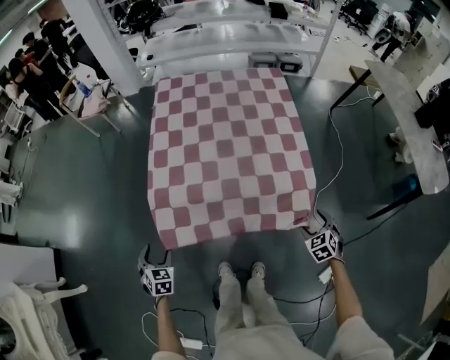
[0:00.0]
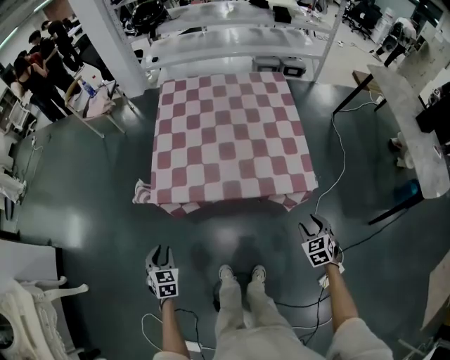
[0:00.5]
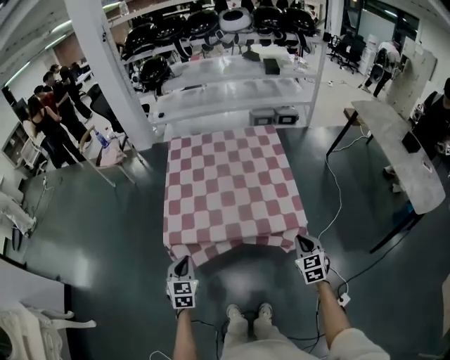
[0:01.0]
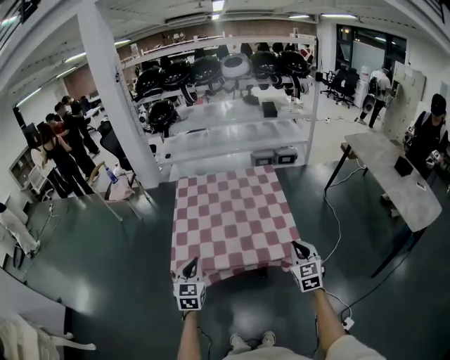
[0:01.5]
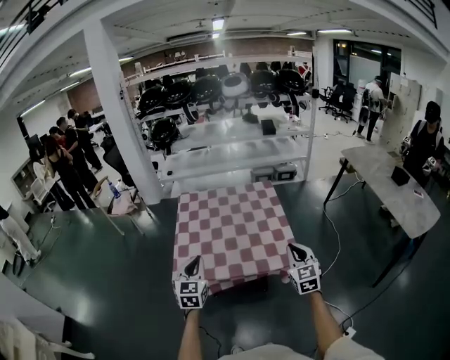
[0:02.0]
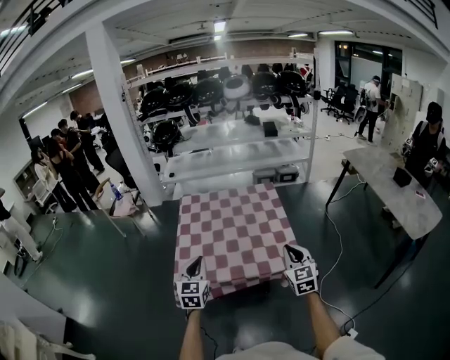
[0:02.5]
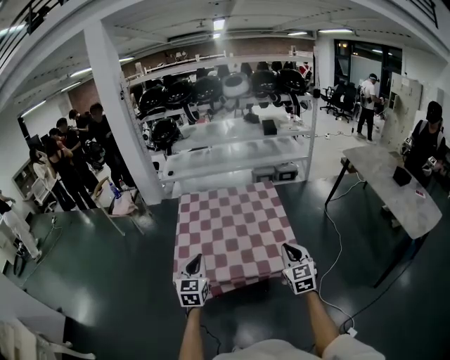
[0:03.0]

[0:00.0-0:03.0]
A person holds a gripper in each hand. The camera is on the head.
0:00.0 to 0:01.5: The right gripper travels upward by approximately 30 cm, angles its fingers upward, by some 40 degrees, and closes its fingers. Meanwhile the left gripper is displaced upward and to the right by some 35 cm, tips its fingers upward by some 30 degrees, and closes.
0:01.5 to 0:03.0: The two grippers go some 5 cm upward.

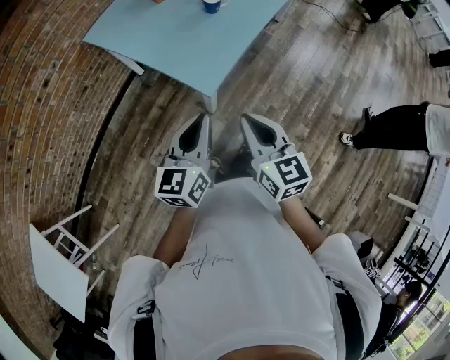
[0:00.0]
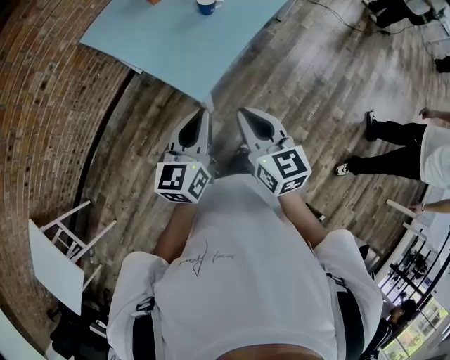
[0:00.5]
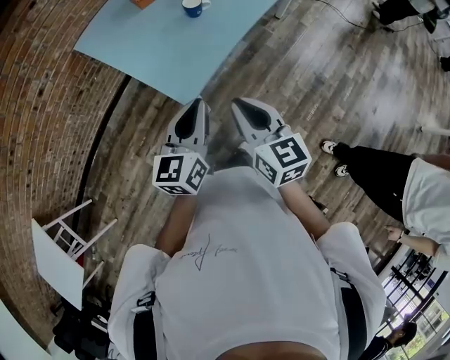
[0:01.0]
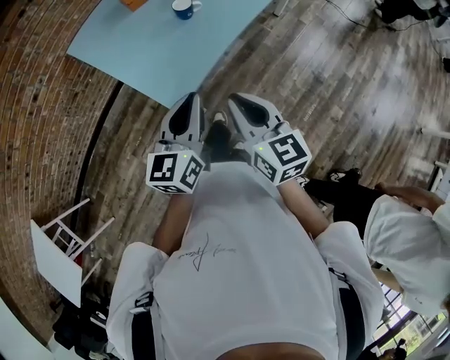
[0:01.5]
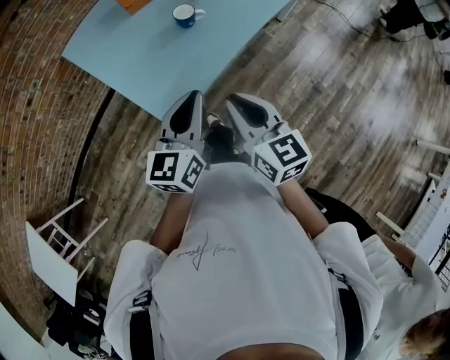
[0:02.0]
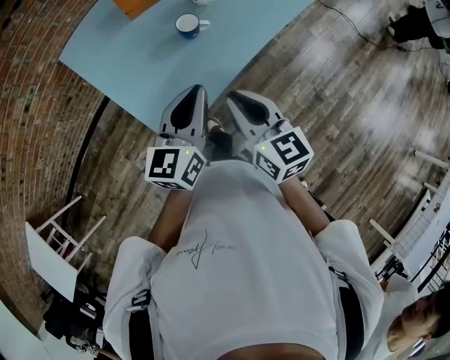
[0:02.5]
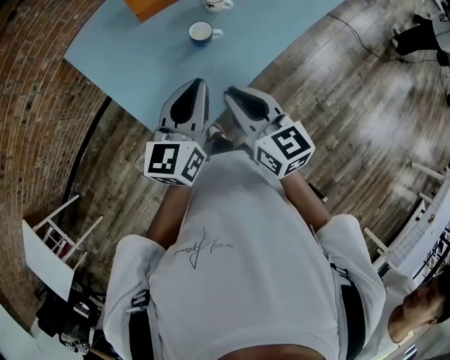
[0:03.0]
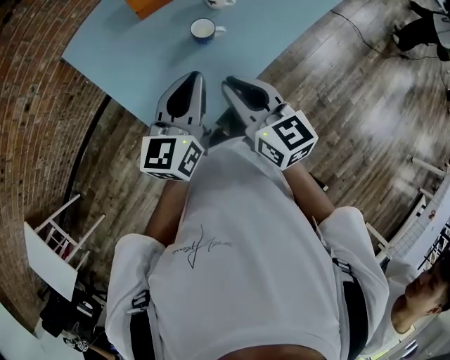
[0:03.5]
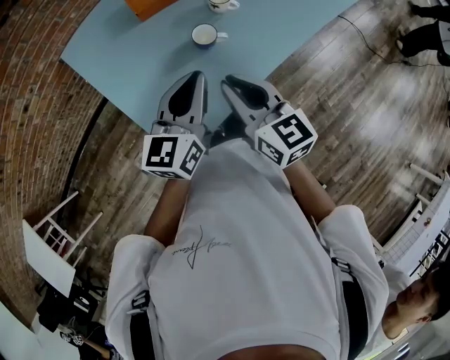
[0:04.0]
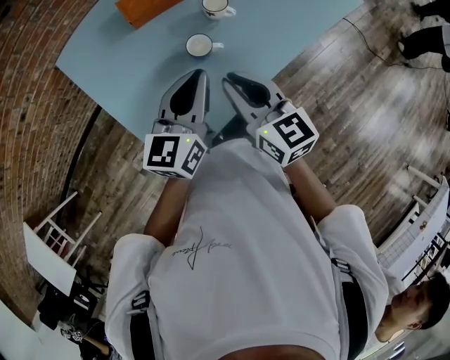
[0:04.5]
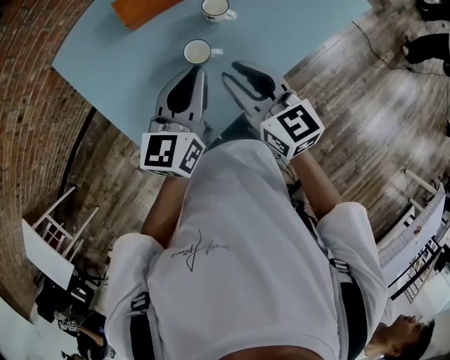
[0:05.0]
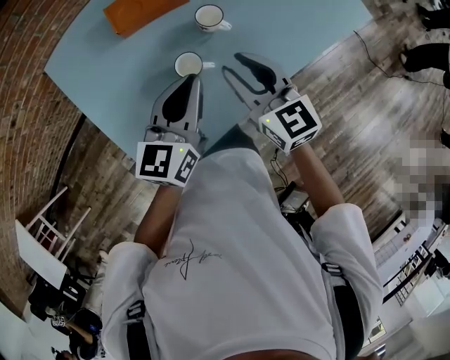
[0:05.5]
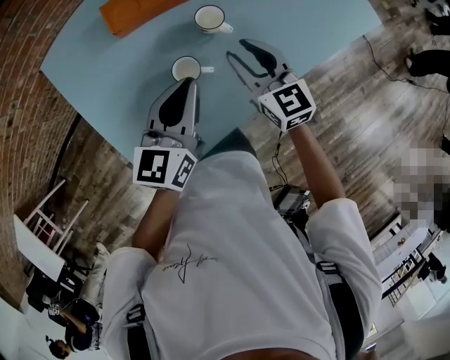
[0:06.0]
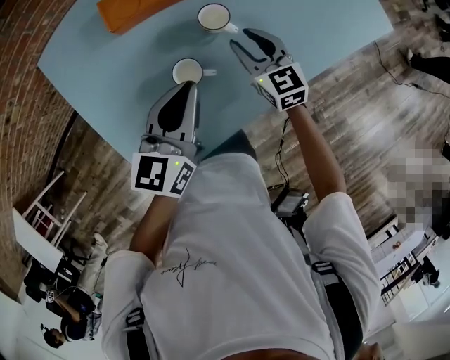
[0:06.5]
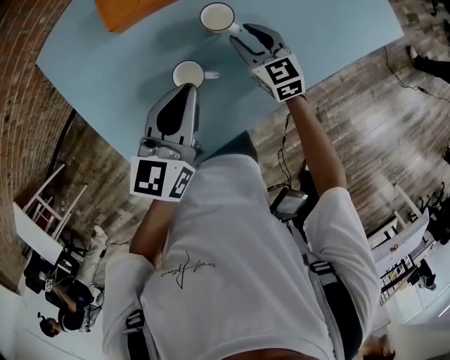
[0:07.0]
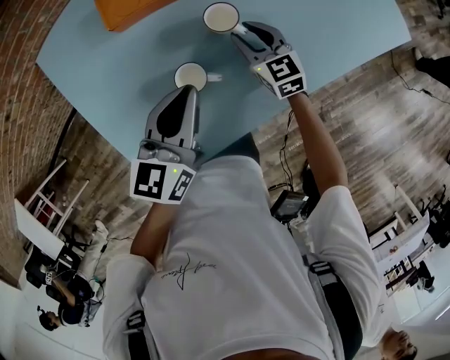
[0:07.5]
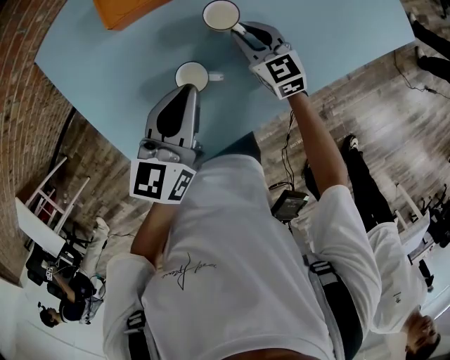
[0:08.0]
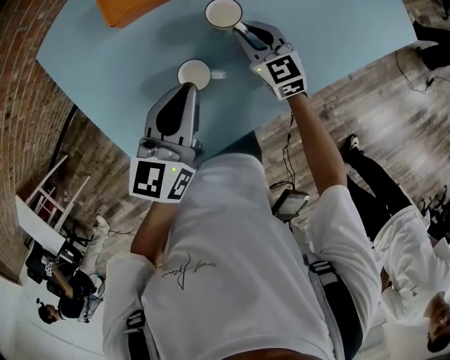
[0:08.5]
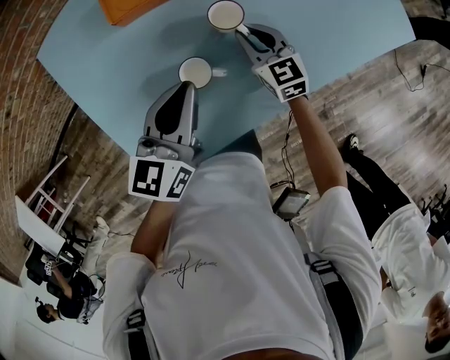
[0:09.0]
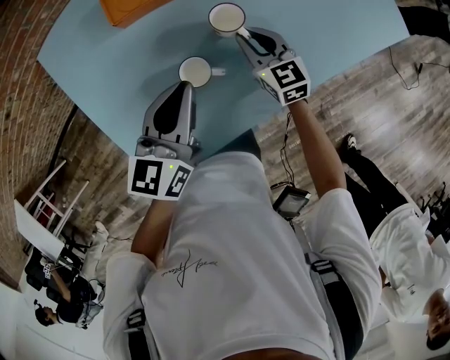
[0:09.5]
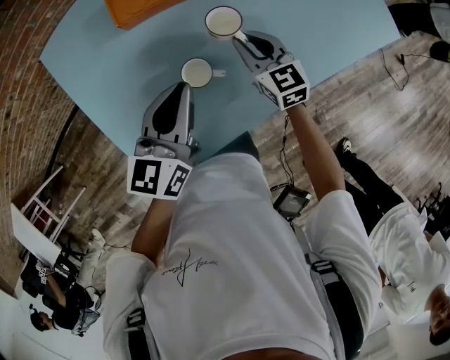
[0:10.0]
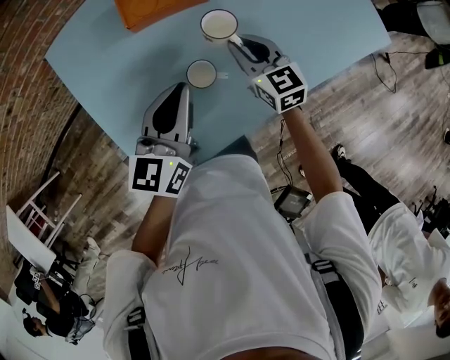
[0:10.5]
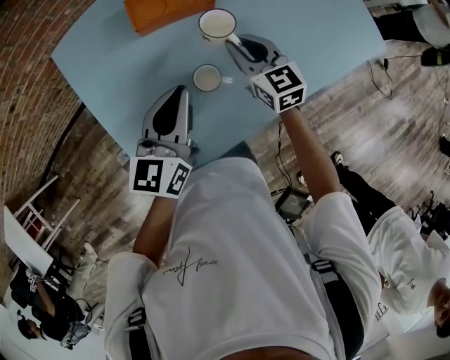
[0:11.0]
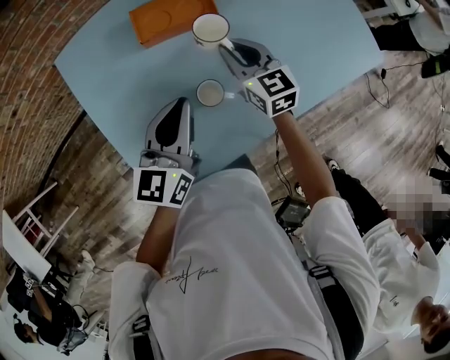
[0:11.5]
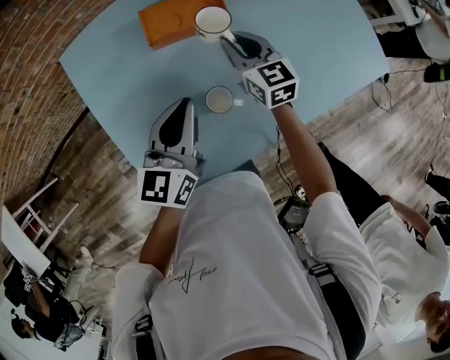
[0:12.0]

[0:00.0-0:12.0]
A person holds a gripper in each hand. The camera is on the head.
0:00.0 to 0:02.0: Both grippers travel together forward and to the right, roughly 20 cm.
0:02.0 to 0:04.0: Both grippers move forward, approximately 15 cm.
0:04.0 to 0:06.0: The left gripper travels forward and to the right by approximately 10 cm, while the right gripper moves forward and to the right, roughly 20 cm, and opens.
0:06.0 to 0:08.0: The right gripper is displaced downward and forward by about 15 cm.
0:08.0 to 0:10.0: There are only small adjustments of the grippers.
0:10.0 to 0:12.0: The right gripper heads upward, forward and to the left, covering some 10 cm.

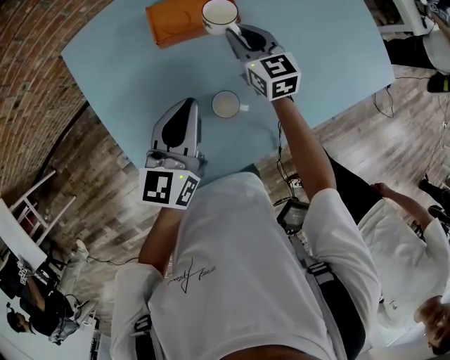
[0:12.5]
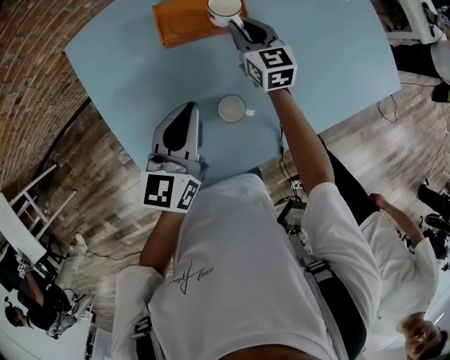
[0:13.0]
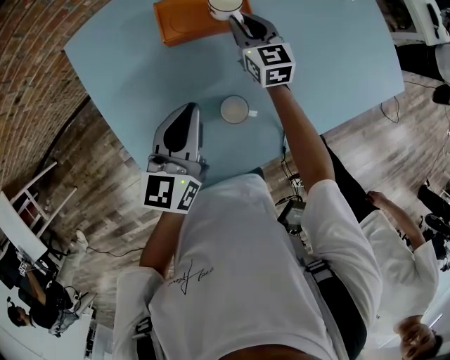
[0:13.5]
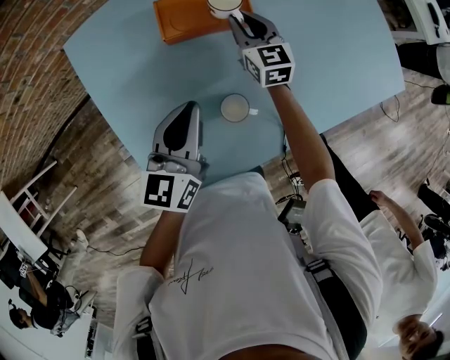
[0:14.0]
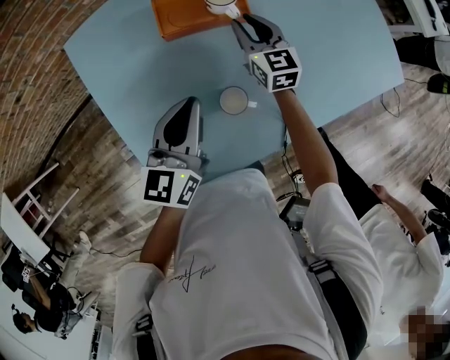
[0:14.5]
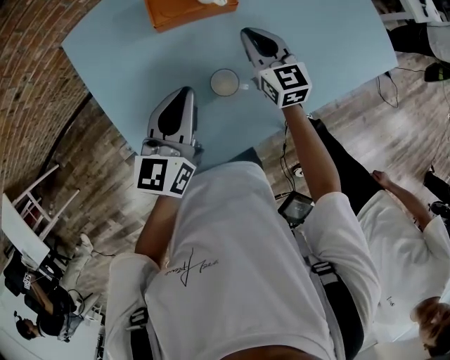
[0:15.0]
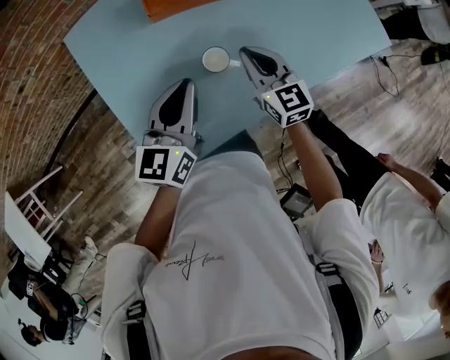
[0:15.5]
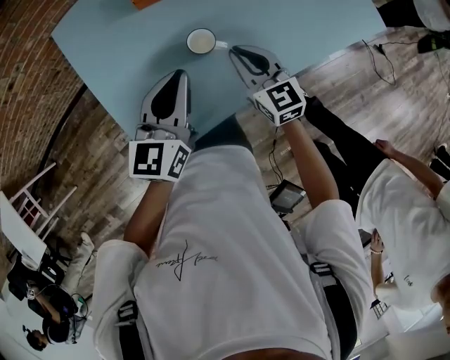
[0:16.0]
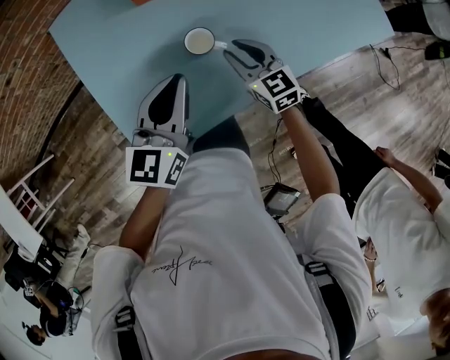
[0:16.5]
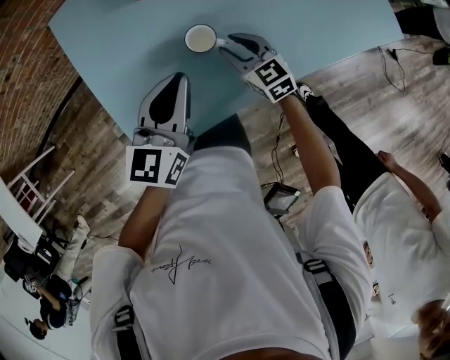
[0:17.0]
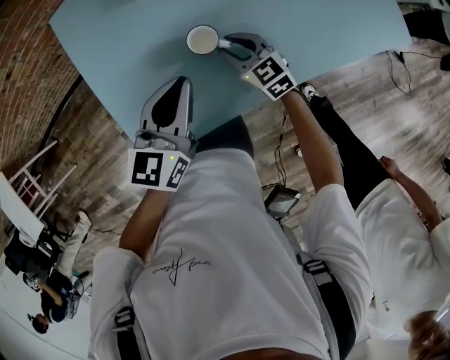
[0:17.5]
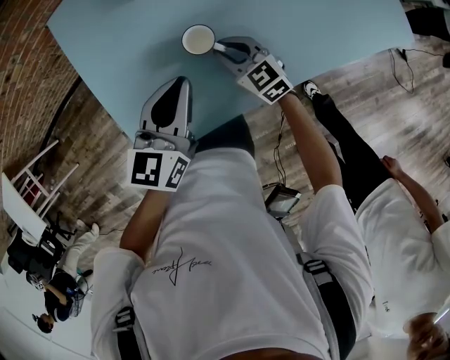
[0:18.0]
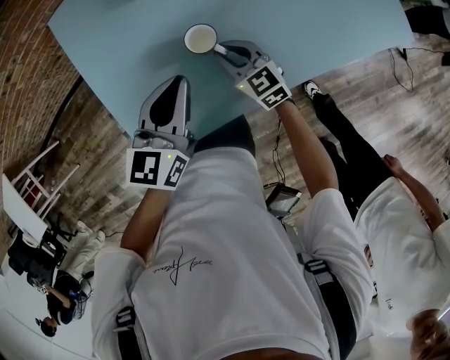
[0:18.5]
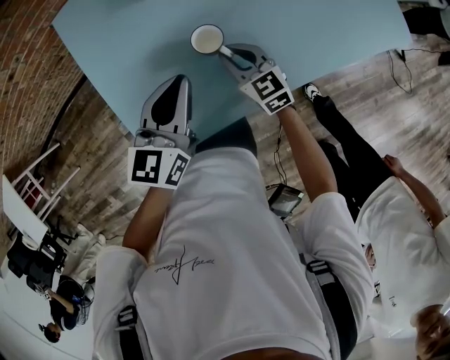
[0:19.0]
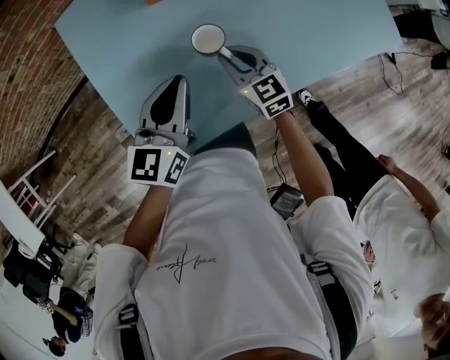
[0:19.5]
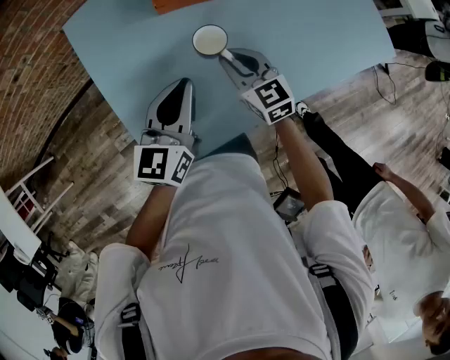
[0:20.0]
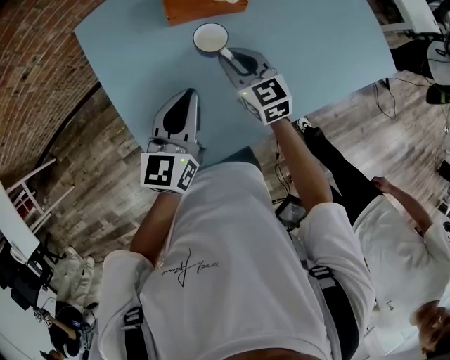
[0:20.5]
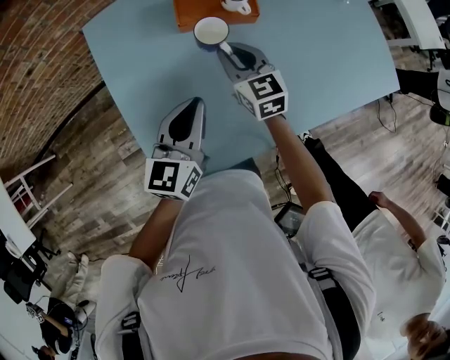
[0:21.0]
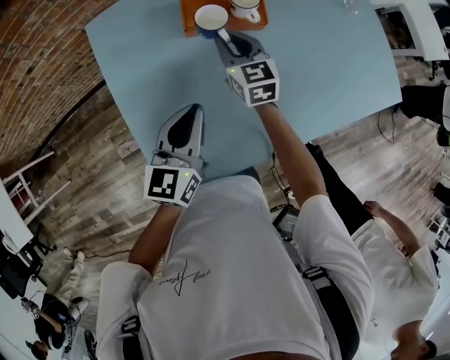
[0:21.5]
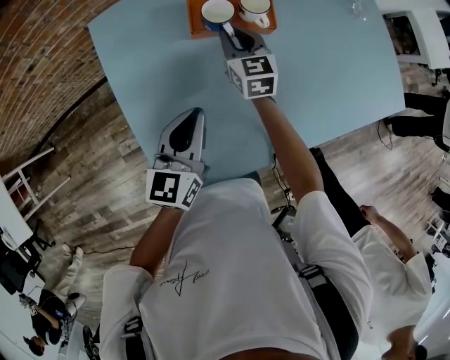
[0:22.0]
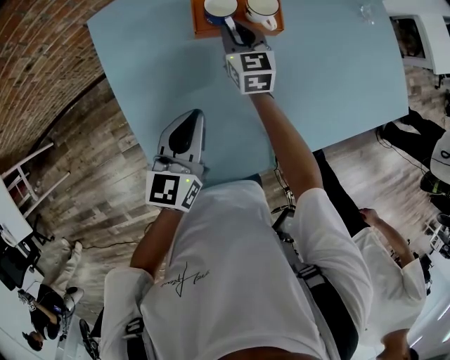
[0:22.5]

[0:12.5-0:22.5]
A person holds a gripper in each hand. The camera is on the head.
0:14.5 to 0:16.5: The right gripper travels backward by some 20 cm. Meanwhile the left gripper moves backward, roughly 10 cm.
0:16.5 to 0:18.5: The right gripper shifts by some 5 cm.
0:18.5 to 0:20.5: The right gripper heads upward and forward, covering some 10 cm. The left gripper ends up some 5 cm from where it was.
0:20.5 to 0:22.5: The right gripper is displaced forward by roughly 15 cm, while the left gripper shifts by approximately 5 cm.

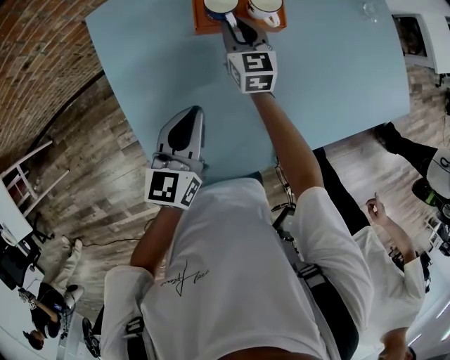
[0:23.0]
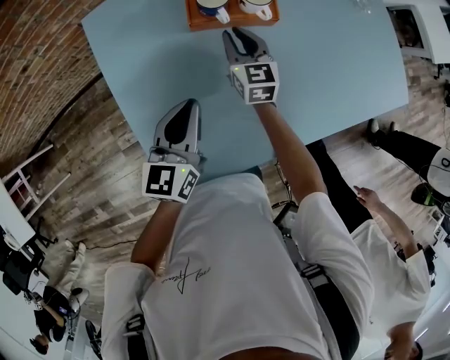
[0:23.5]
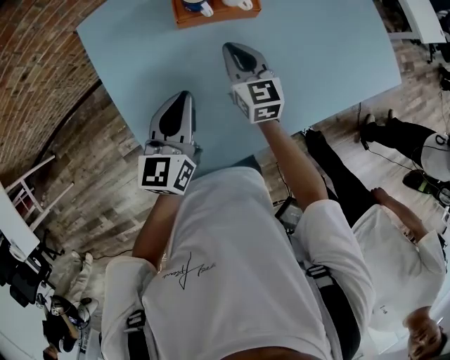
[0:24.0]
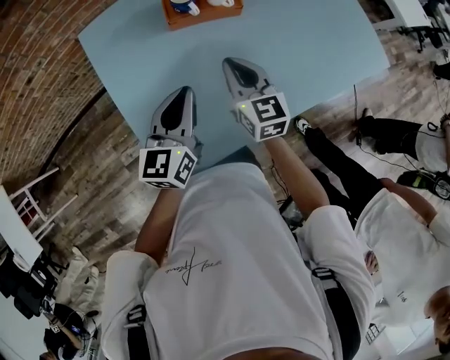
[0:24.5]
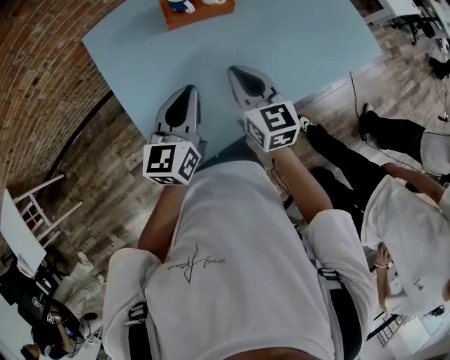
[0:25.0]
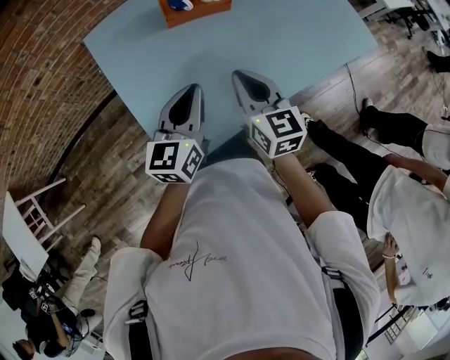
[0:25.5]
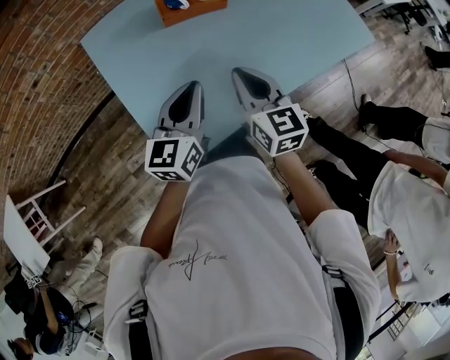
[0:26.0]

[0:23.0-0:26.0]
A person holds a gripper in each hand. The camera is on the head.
0:23.0 to 0:24.5: The left gripper ends up some 5 cm from where it was. The right gripper heads backward and upward, covering about 20 cm.
0:24.5 to 0:26.0: The right gripper goes roughly 10 cm backward and upward, while the left gripper travels backward by some 5 cm.
